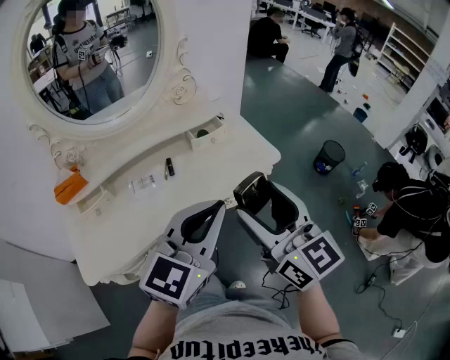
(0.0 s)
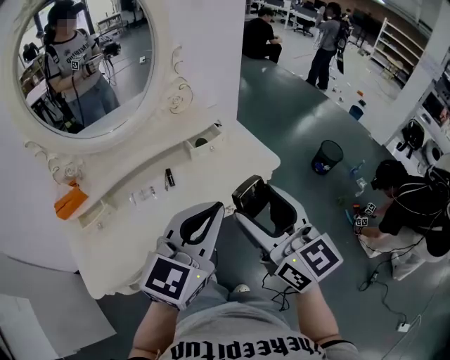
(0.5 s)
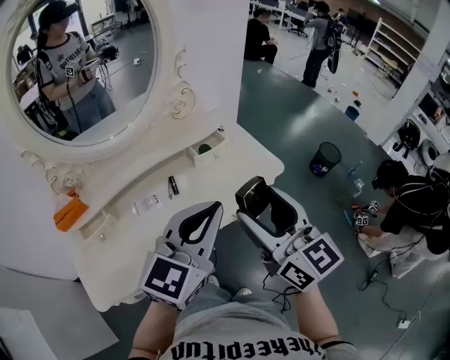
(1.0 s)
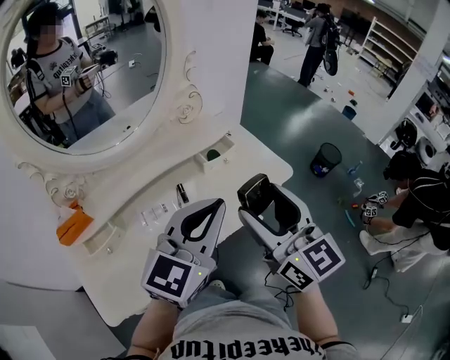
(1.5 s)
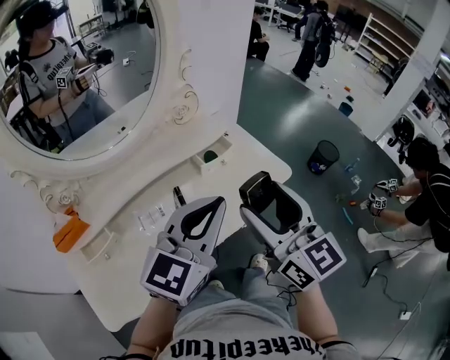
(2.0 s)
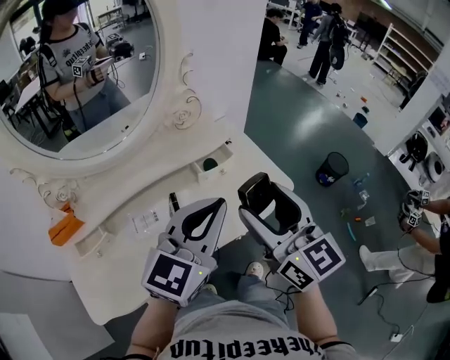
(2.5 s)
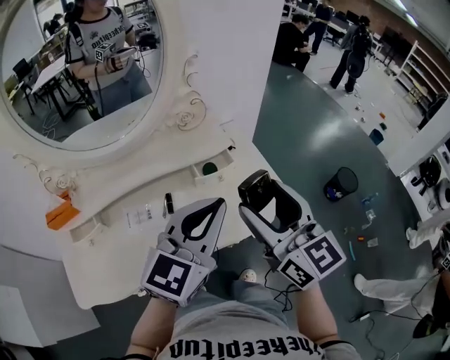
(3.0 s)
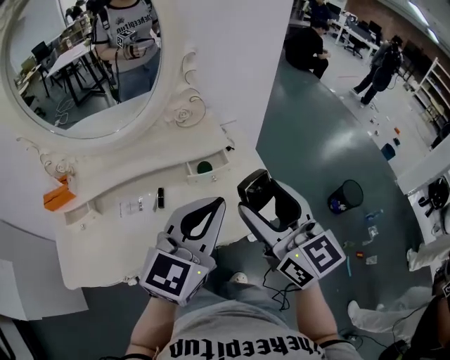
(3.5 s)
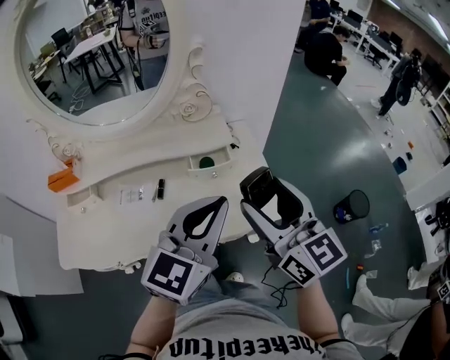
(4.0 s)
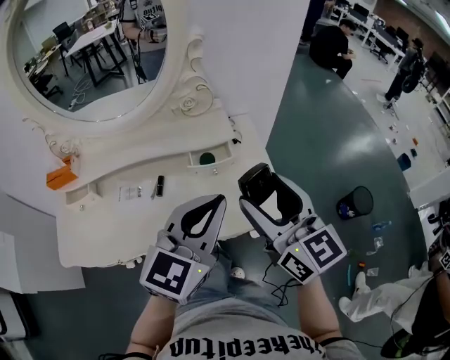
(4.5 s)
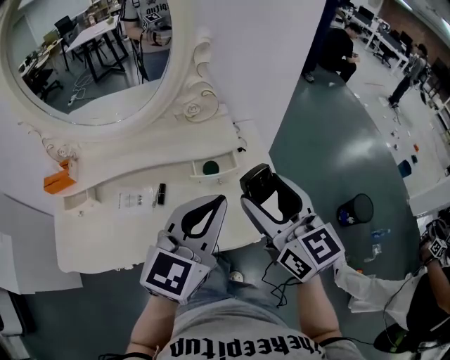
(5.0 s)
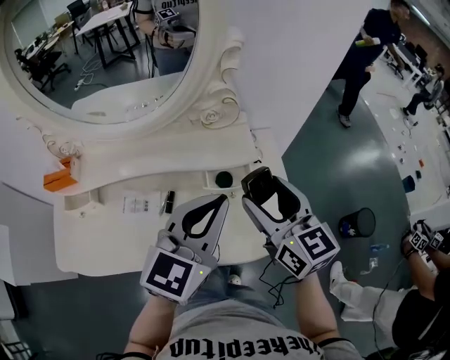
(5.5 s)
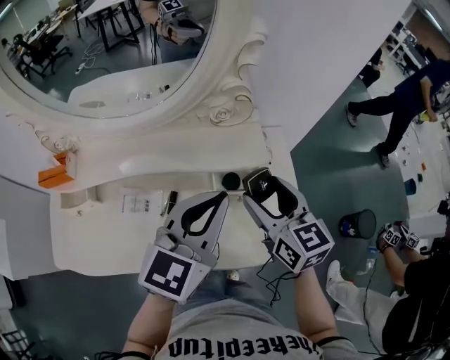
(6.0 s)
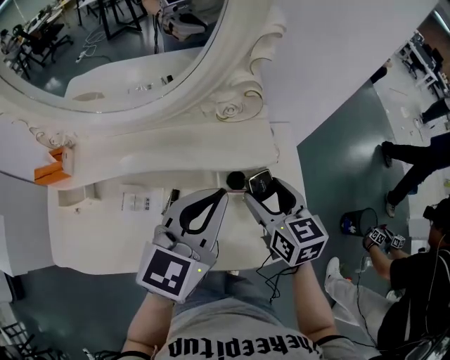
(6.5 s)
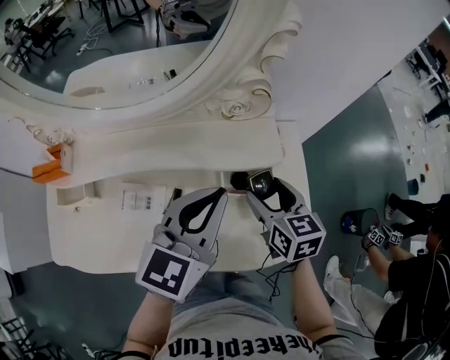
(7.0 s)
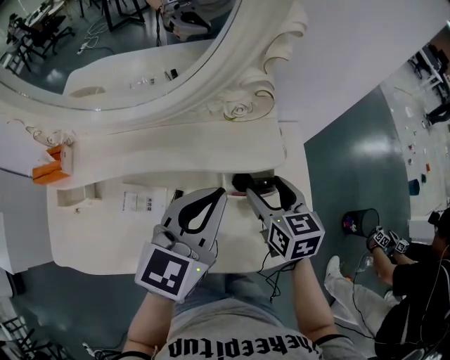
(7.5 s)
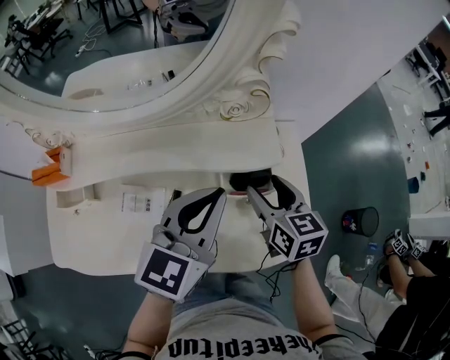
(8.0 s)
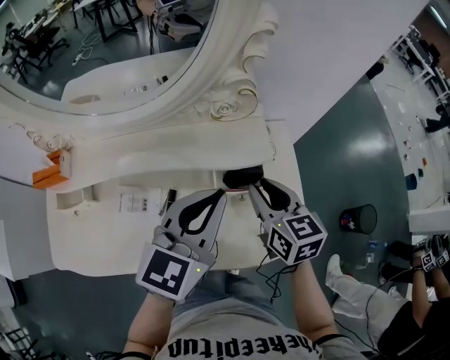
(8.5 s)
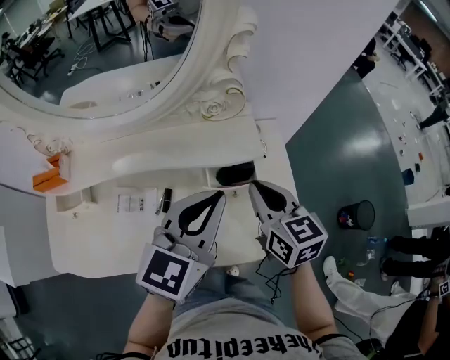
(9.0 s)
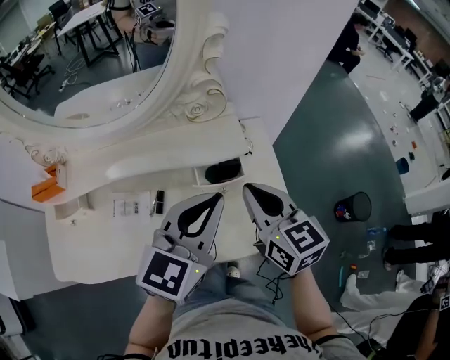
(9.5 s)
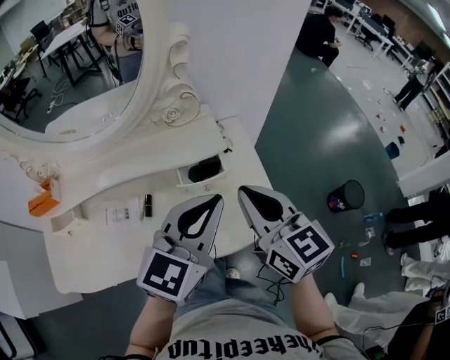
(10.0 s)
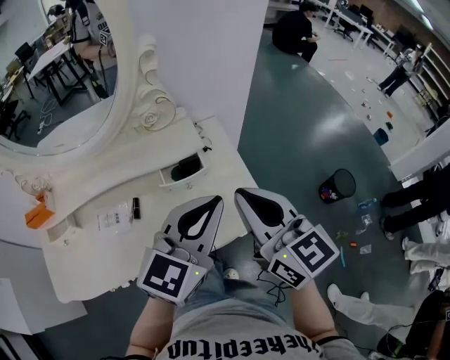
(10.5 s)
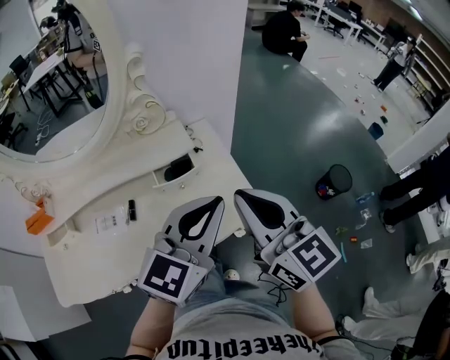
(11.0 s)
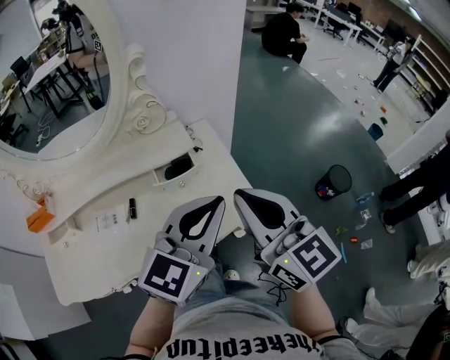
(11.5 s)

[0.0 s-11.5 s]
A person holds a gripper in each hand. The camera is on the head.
0.0 to 2.0 s: The grippers both shift forward and to the left by about 15 cm.
2.0 to 4.0 s: The right gripper moves roughly 15 cm, and turns by about 30 degrees; the left gripper shifts by roughly 15 cm, and turns by some 30 degrees.
4.0 to 6.0 s: The right gripper heads forward and downward, covering some 20 cm; the left gripper heads forward and to the left, covering some 15 cm.
6.0 to 7.5 s: The left gripper changes place by about 5 cm; the right gripper is displaced downward by about 10 cm.
7.5 to 9.5 s: The left gripper moves to the right and backward, approximately 10 cm. The right gripper goes about 15 cm upward and backward, and closes.
9.5 to 11.5 s: The right gripper is displaced backward, upward and to the right by about 20 cm. The left gripper heads to the right and backward, covering about 15 cm.

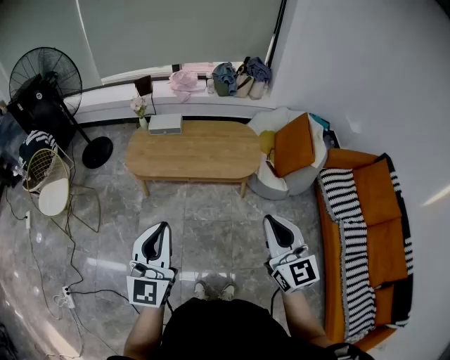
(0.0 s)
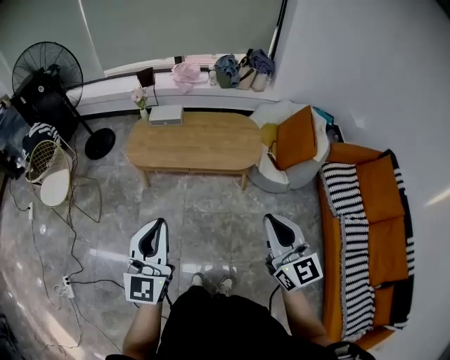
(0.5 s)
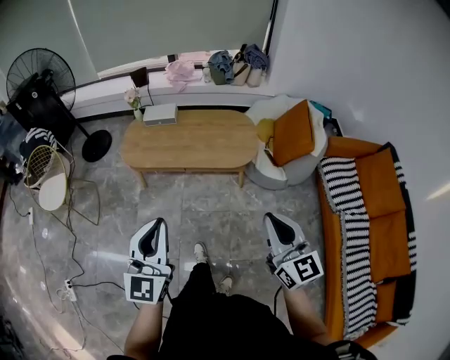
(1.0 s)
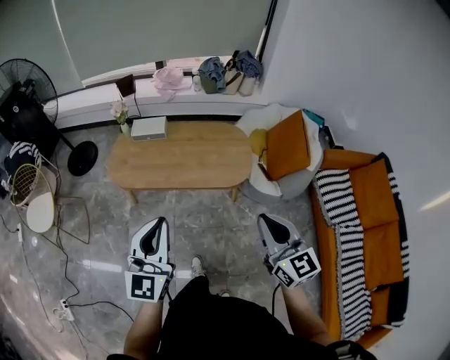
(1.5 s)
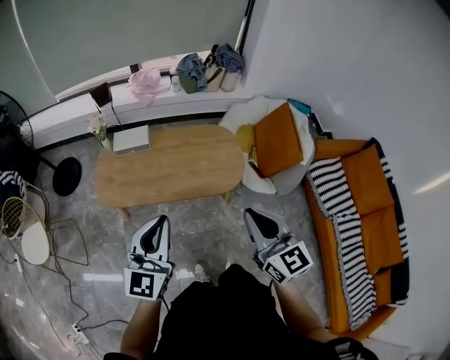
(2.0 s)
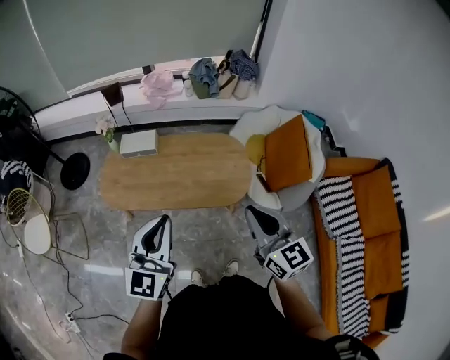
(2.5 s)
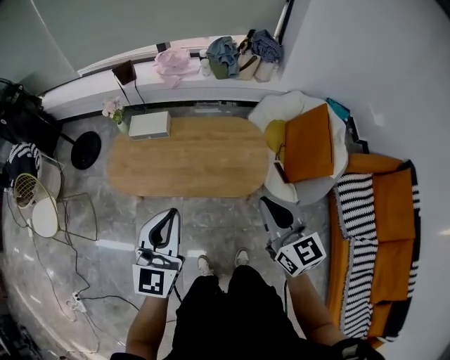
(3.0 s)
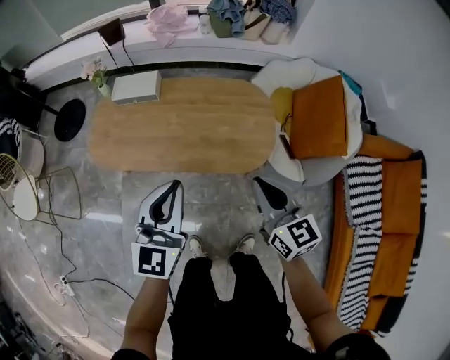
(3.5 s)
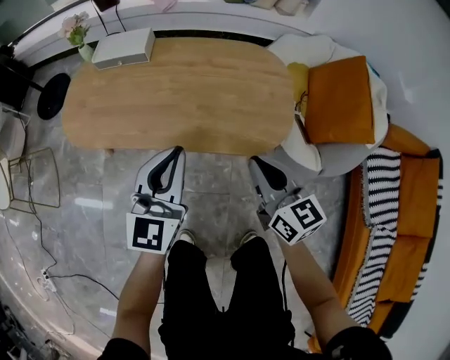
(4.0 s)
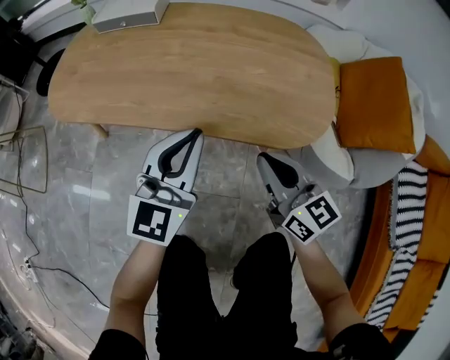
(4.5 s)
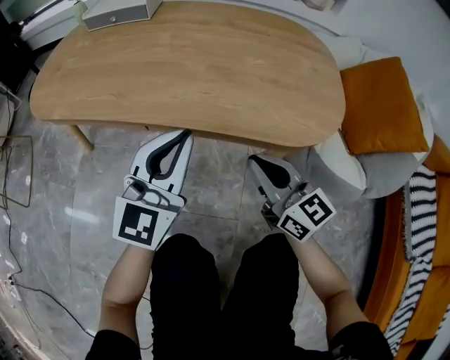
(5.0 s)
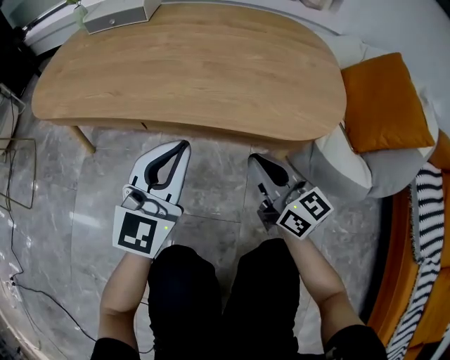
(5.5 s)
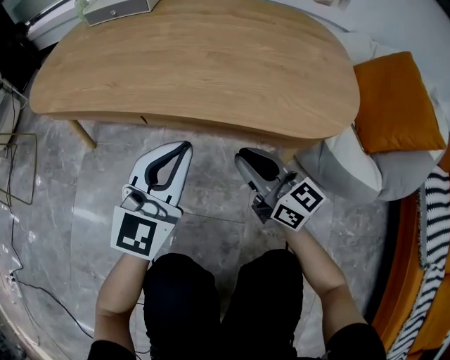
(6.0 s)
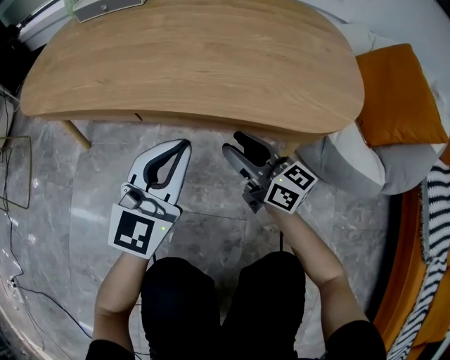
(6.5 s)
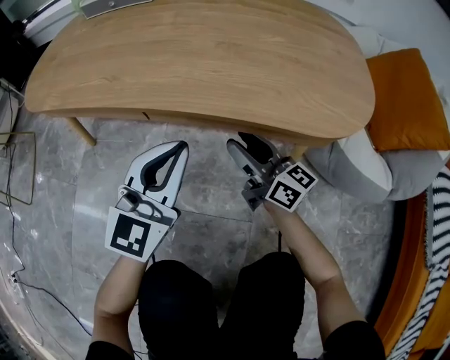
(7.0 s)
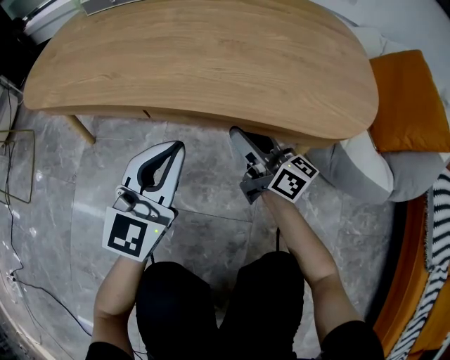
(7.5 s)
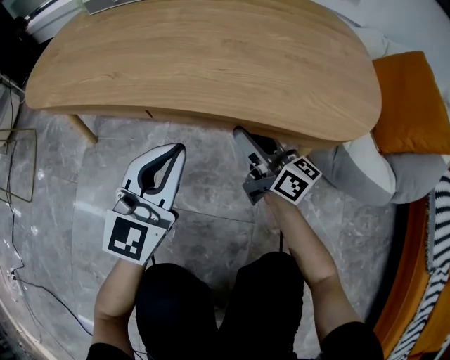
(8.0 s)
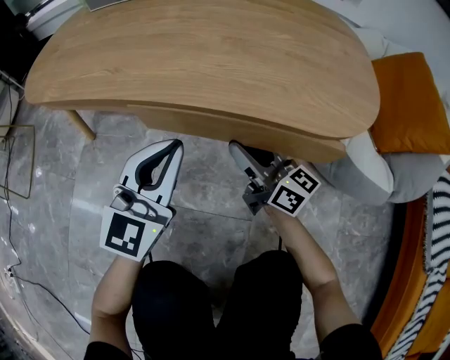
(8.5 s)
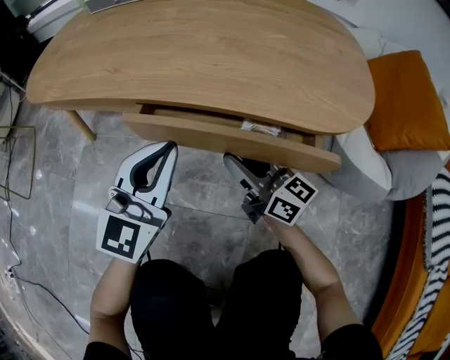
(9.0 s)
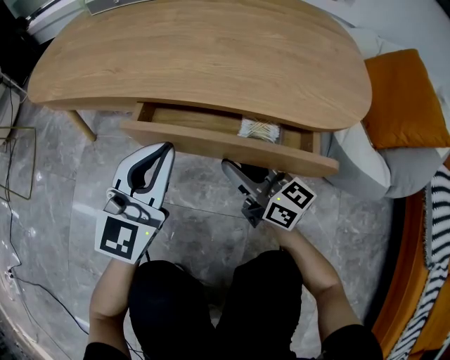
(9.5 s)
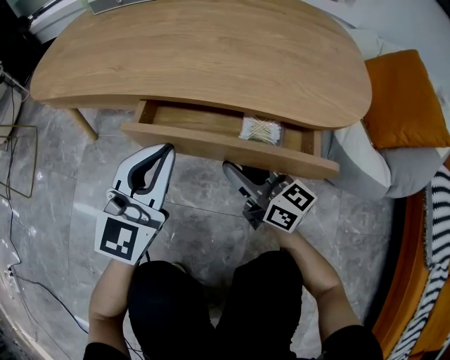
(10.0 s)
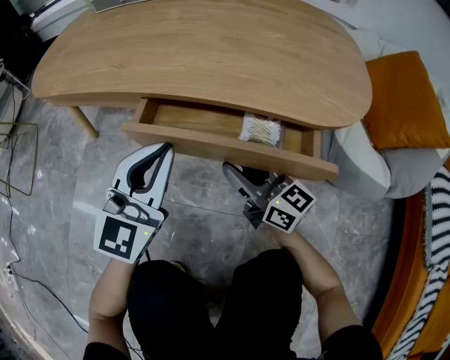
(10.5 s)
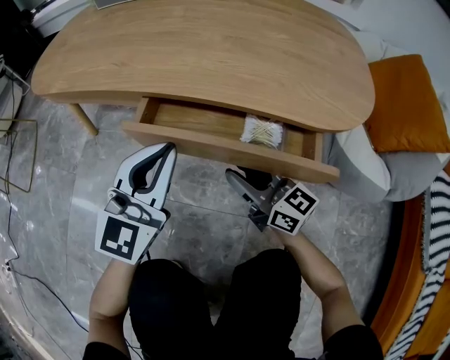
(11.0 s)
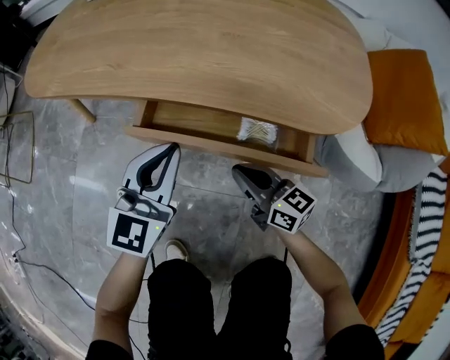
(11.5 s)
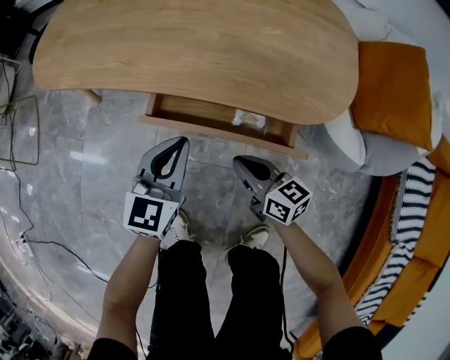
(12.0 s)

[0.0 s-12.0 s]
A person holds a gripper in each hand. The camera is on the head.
0.0 to 2.0 s: Both grippers move forward, about 25 cm.
2.0 to 4.0 s: The two grippers go about 40 cm downward and forward.
4.0 to 6.0 s: Both grippers travel together downward, about 30 cm. The right gripper turns by approximately 20 degrees.
6.0 to 8.0 s: The right gripper moves forward, about 10 cm, rotates approximately 20 degrees, and opens.
8.0 to 10.0 s: The right gripper goes some 10 cm backward.
10.0 to 12.0 s: The left gripper rotates some 30 degrees. Meanwhile the right gripper shifts roughly 5 cm backward, rotates approximately 20 degrees, and closes up.

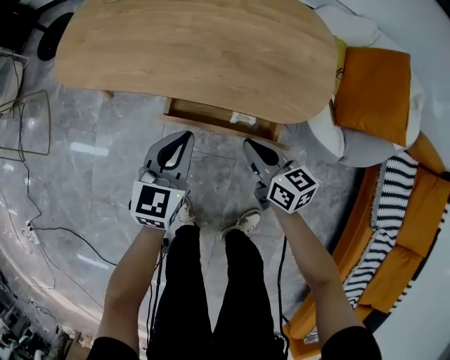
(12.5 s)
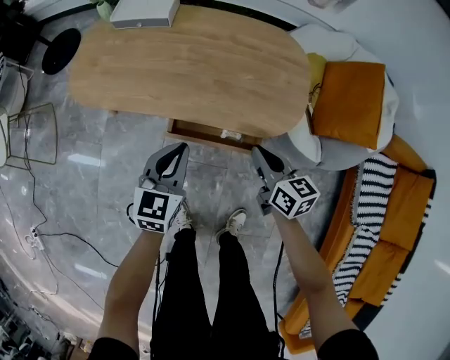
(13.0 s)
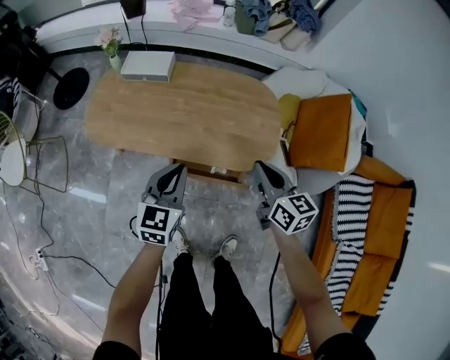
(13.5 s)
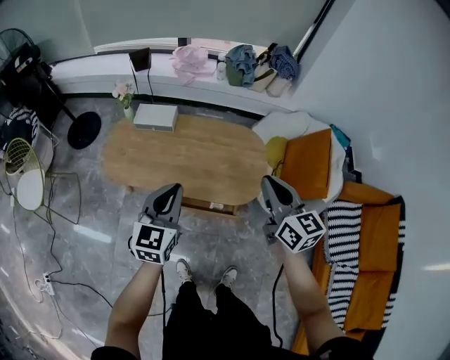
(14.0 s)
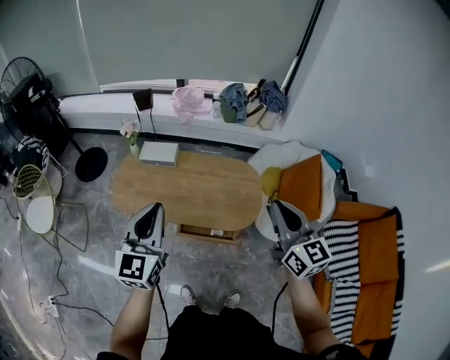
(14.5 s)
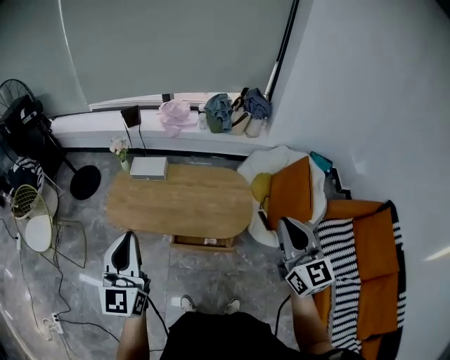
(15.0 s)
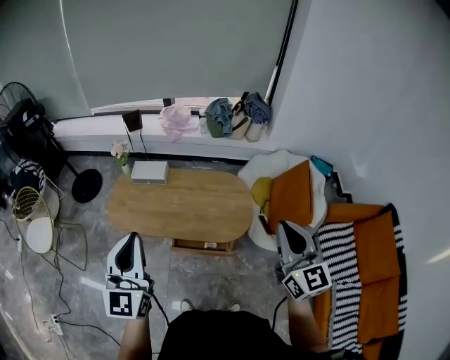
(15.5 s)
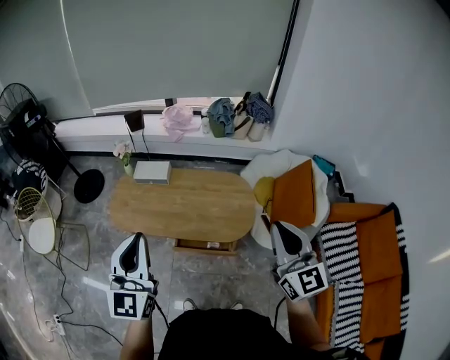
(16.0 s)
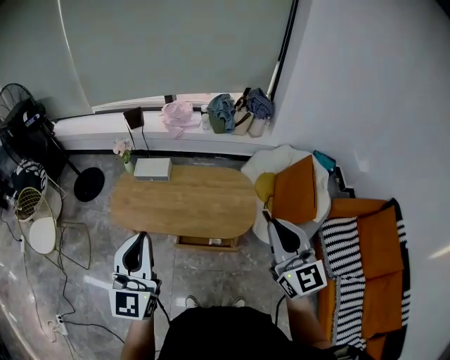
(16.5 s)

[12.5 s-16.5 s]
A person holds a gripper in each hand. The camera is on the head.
12.5 to 14.5 s: Both grippers travel together upward, some 60 cm. The left gripper changes its angle by about 20 degrees, while the right gripper swivels some 40 degrees.
14.5 to 16.5 s: The left gripper travels upward and backward by about 10 cm. Meanwhile the right gripper is displaced backward by about 5 cm.
